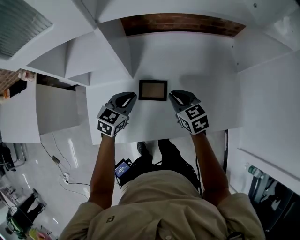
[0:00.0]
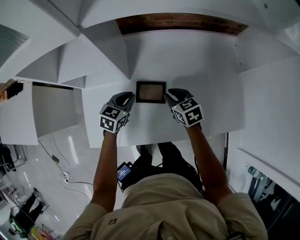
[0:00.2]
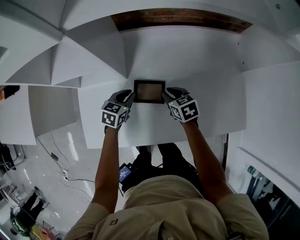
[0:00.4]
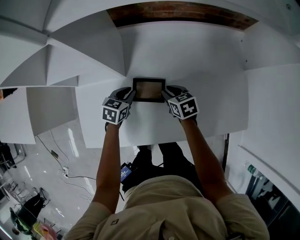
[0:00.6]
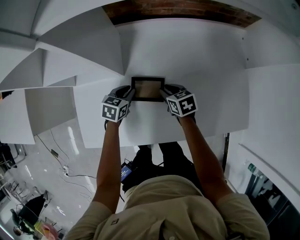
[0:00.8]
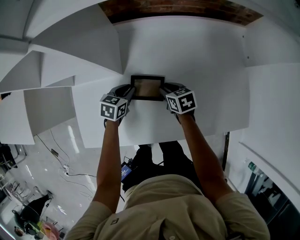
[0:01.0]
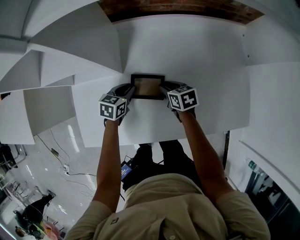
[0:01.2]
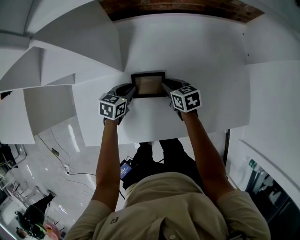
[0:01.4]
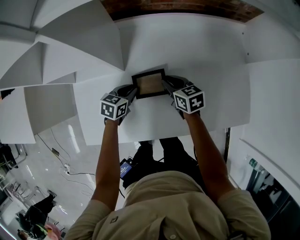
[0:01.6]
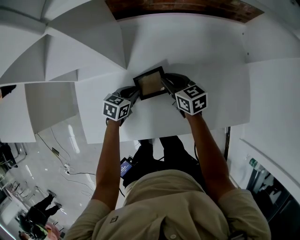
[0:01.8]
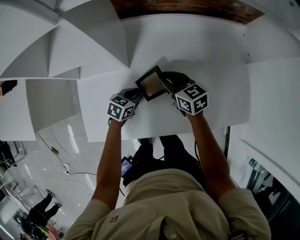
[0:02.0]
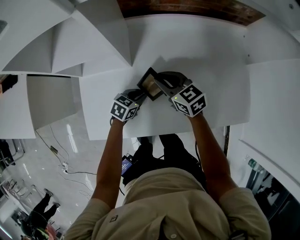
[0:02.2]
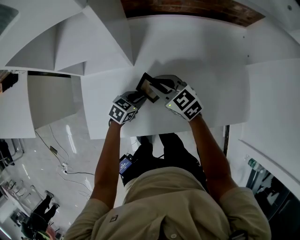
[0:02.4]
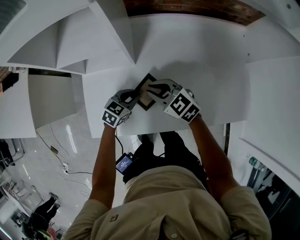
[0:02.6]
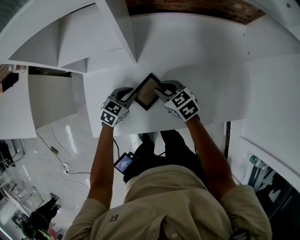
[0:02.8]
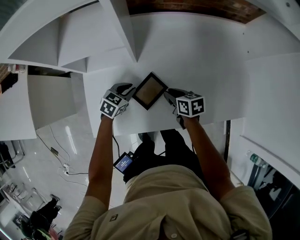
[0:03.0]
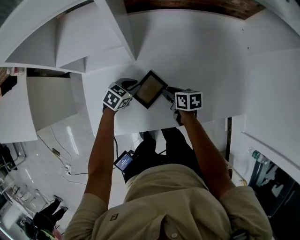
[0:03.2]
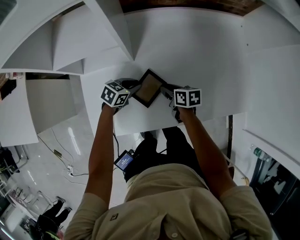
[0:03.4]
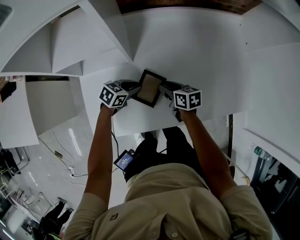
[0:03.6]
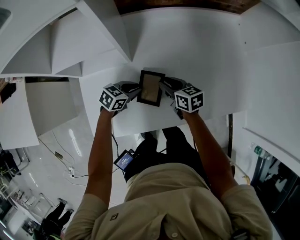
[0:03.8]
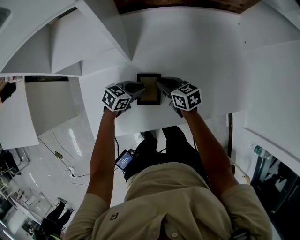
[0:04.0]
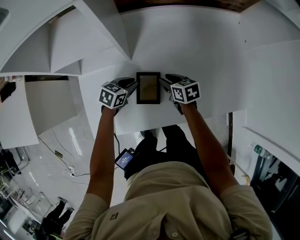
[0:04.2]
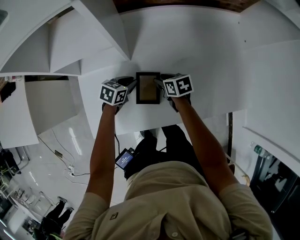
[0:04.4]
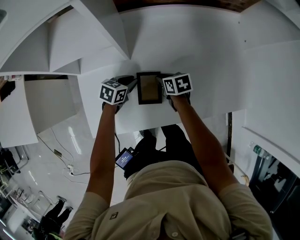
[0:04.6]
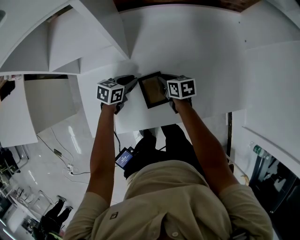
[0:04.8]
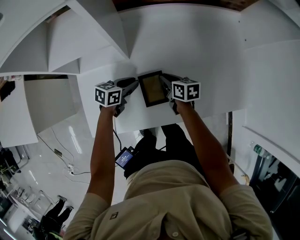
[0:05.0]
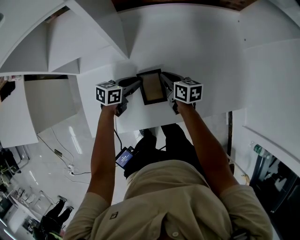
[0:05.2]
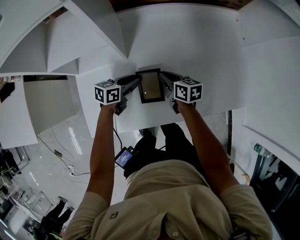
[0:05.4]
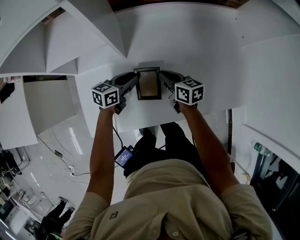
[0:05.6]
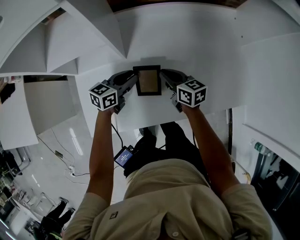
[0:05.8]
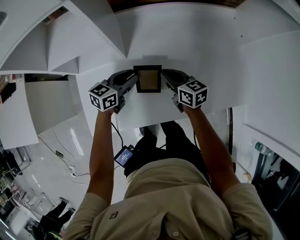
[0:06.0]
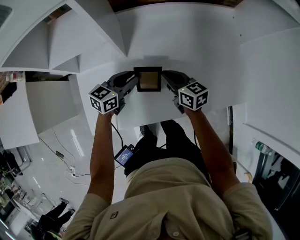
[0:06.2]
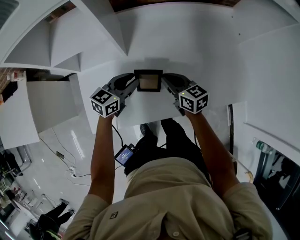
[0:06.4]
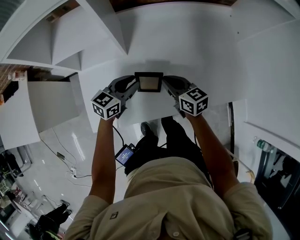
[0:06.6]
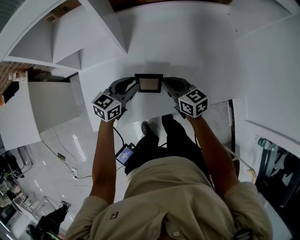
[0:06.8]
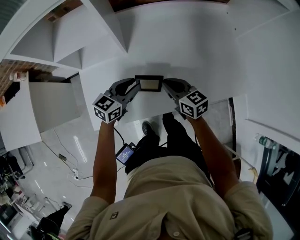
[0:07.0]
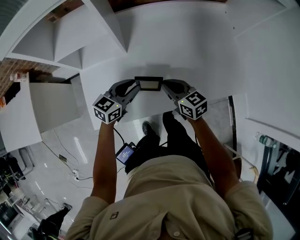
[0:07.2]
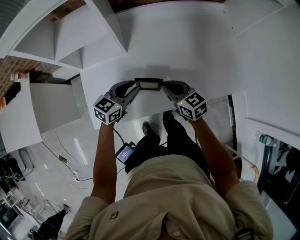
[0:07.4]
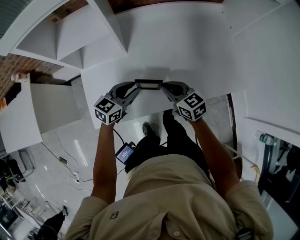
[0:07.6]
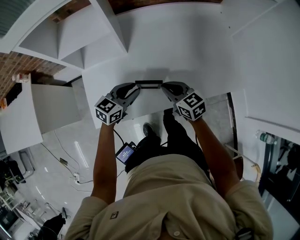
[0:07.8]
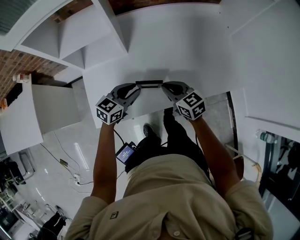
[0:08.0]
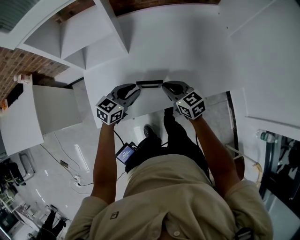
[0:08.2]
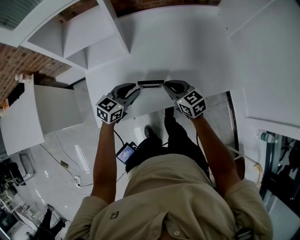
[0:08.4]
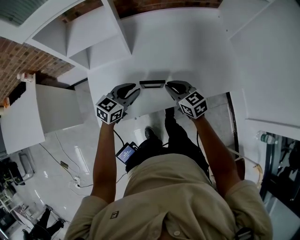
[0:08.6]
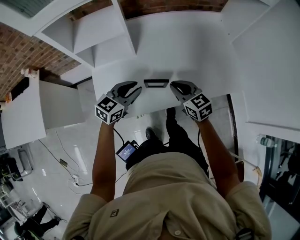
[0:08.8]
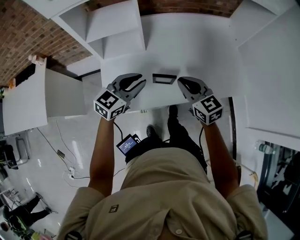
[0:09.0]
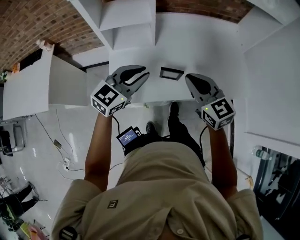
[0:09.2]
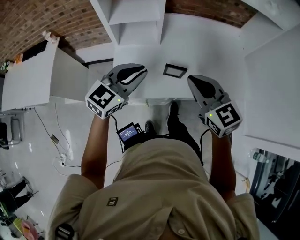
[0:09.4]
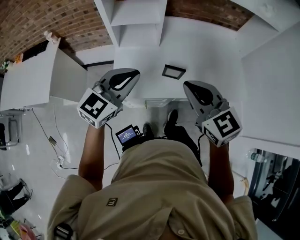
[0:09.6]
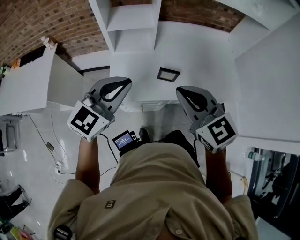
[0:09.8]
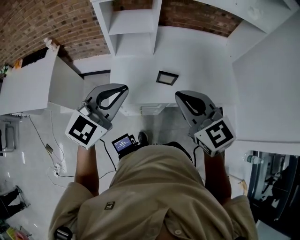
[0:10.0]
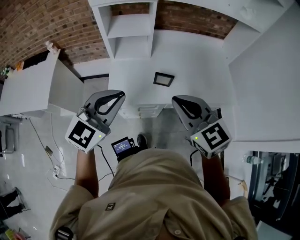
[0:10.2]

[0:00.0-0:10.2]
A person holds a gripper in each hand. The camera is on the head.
0:00.0 to 0:01.4: Both grippers move downward, roughly 15 cm. The left gripper turns by roughly 20 degrees; the right gripper rotates some 20 degrees.
0:01.4 to 0:03.0: The right gripper heads backward, covering approximately 10 cm. The left gripper is displaced to the left and backward by about 10 cm.
0:03.0 to 0:04.4: The right gripper shifts by some 5 cm.
0:04.4 to 0:05.8: The two grippers go roughly 10 cm upward. The right gripper swivels approximately 30 degrees, and closes up, while the left gripper turns by roughly 30 degrees.
0:05.8 to 0:07.2: Both grippers travel together backward, approximately 10 cm.
0:07.2 to 0:08.8: Both grippers move upward and backward, some 10 cm.
0:08.8 to 0:10.2: Both grippers move upward and backward, roughly 35 cm. The left gripper turns by approximately 30 degrees. The right gripper changes its angle by about 20 degrees.

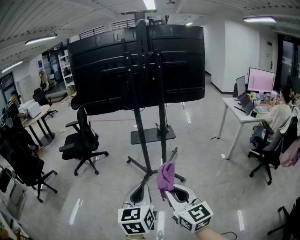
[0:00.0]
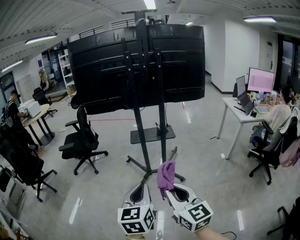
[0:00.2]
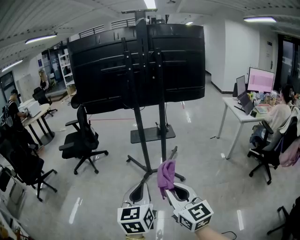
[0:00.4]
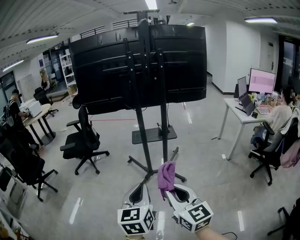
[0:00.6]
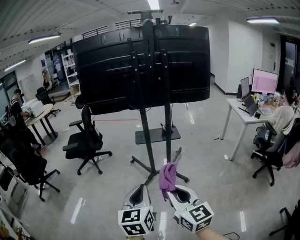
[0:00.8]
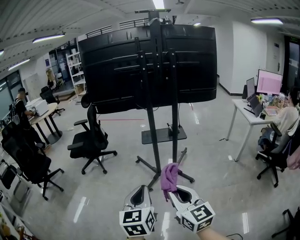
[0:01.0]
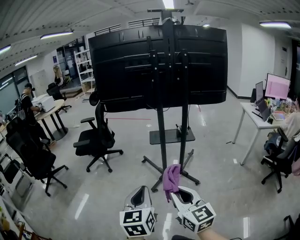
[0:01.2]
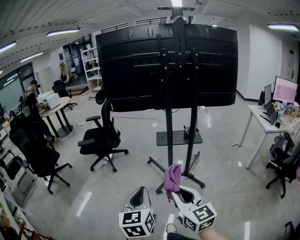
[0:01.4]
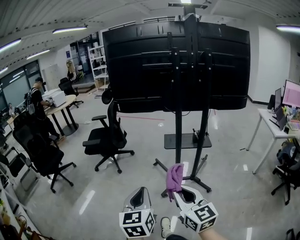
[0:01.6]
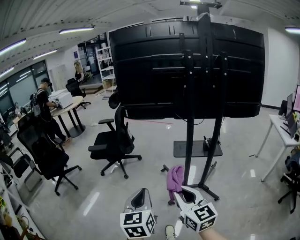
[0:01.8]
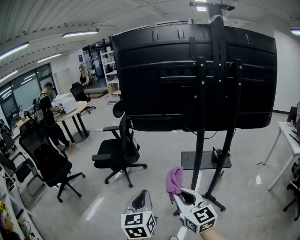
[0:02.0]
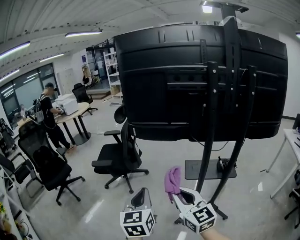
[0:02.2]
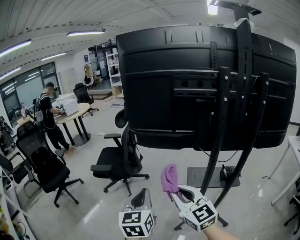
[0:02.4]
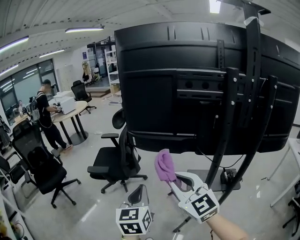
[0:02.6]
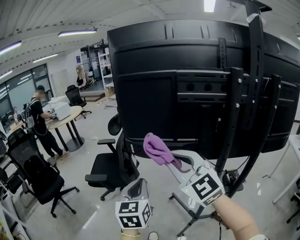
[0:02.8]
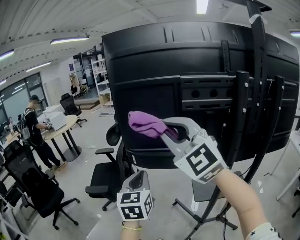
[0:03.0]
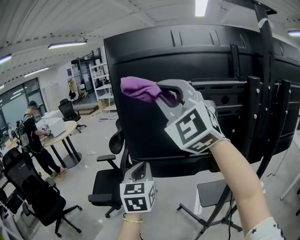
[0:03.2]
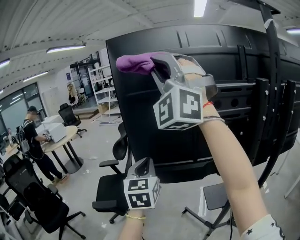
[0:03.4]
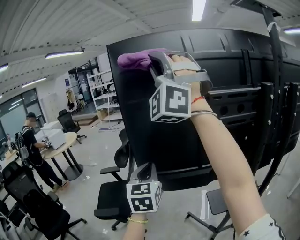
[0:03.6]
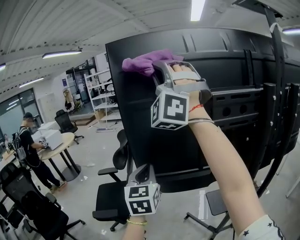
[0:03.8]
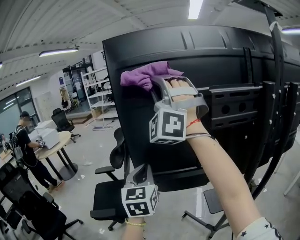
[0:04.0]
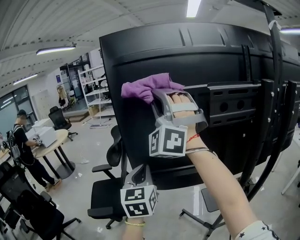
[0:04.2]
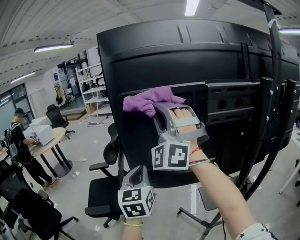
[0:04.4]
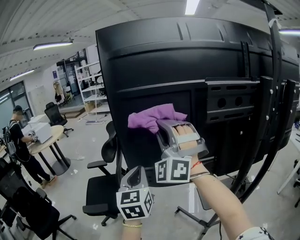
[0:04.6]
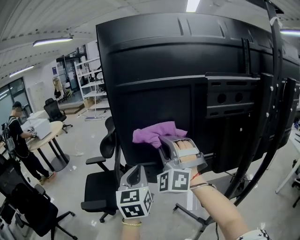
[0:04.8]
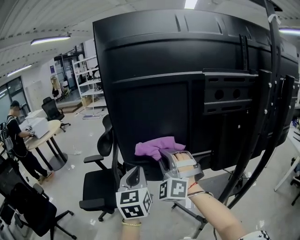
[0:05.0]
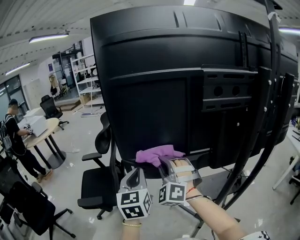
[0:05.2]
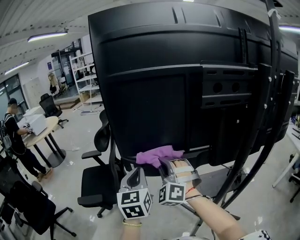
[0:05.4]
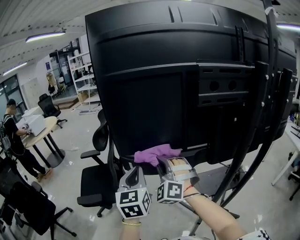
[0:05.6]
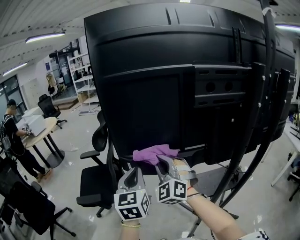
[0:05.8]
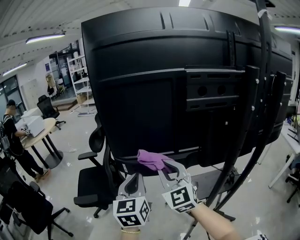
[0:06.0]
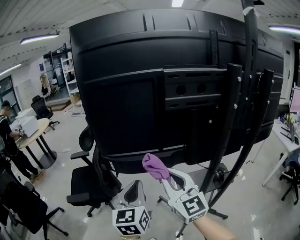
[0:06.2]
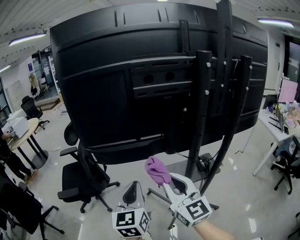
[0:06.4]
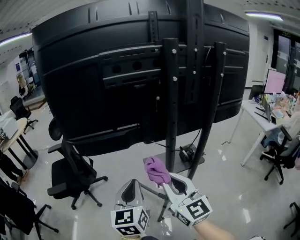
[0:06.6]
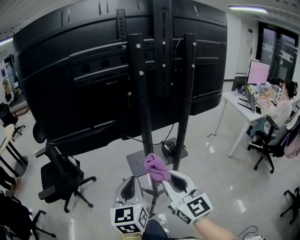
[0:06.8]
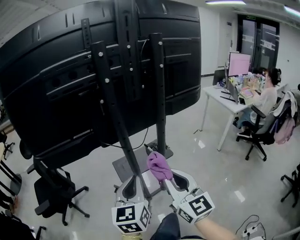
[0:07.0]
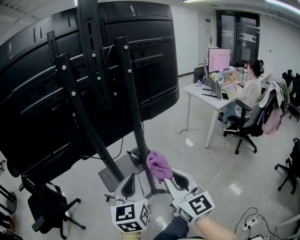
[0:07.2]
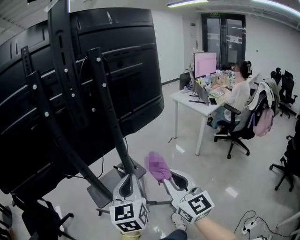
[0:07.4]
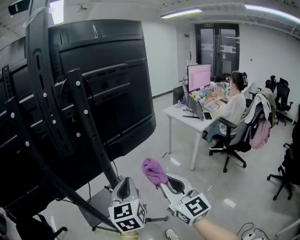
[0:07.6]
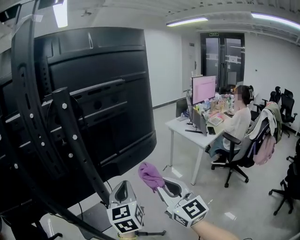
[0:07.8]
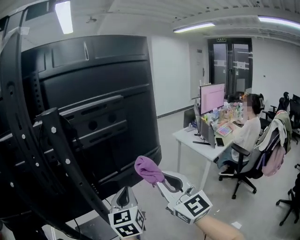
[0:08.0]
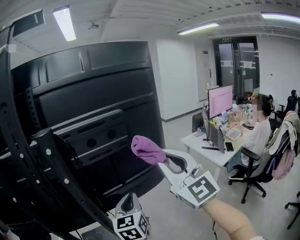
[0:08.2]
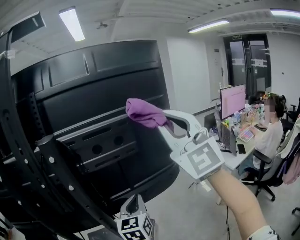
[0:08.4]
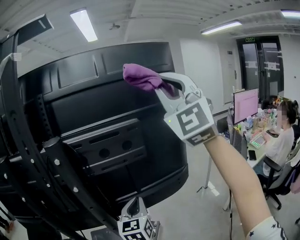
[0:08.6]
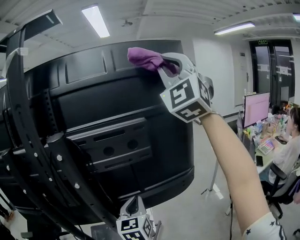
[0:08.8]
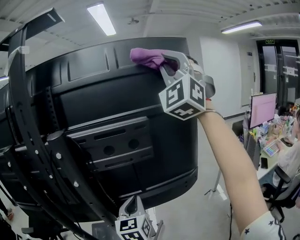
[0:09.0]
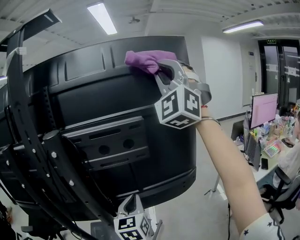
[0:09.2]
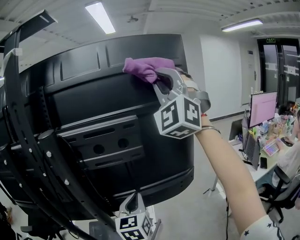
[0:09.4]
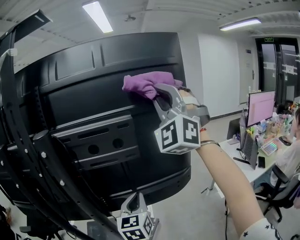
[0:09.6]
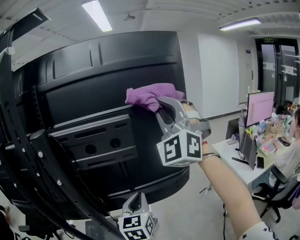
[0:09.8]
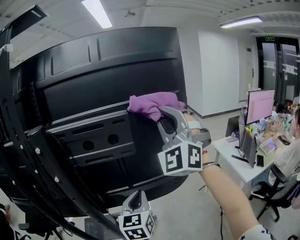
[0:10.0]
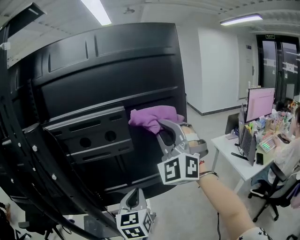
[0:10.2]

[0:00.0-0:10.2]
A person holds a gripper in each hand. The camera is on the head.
0:00.0 to 0:01.4: The two grippers go approximately 15 cm to the left and forward.
0:01.4 to 0:03.0: The two grippers travel together, forward, some 60 cm. The right gripper shifts some 30 cm upward, and rolls counterclockwise, seen from behind, by some 50 degrees.
0:03.0 to 0:04.4: Both grippers move forward, approximately 15 cm. The right gripper goes upward and returns, about 25 cm each way, and rotates roughly 50 degrees.
0:04.4 to 0:05.8: The right gripper travels downward by about 25 cm, and changes its angle by about 40 degrees. Meanwhile the left gripper shifts roughly 5 cm downward.
0:05.8 to 0:07.2: Both grippers are carried roughly 60 cm. The left gripper swivels some 30 degrees. The right gripper twists roughly 50 degrees clockwise, seen from behind.
0:07.2 to 0:08.8: Both grippers are carried forward and to the right, about 50 cm. The right gripper is displaced upward by about 50 cm, and twists approximately 60 degrees counterclockwise, seen from behind.
0:08.8 to 0:10.2: The right gripper is displaced downward by roughly 25 cm. Meanwhile the left gripper moves to the right, about 5 cm.

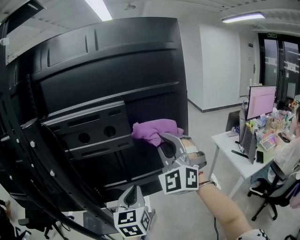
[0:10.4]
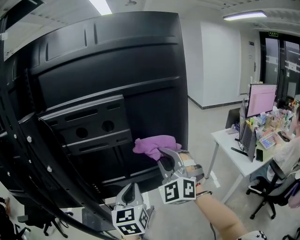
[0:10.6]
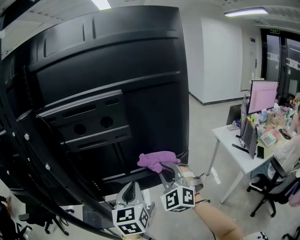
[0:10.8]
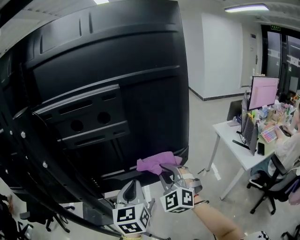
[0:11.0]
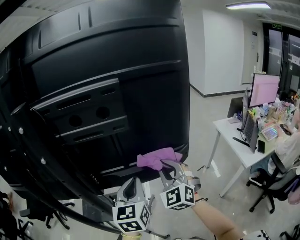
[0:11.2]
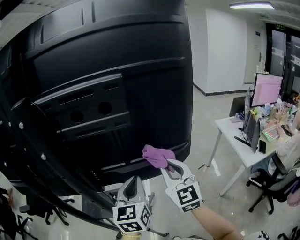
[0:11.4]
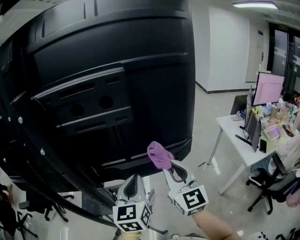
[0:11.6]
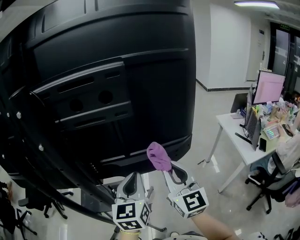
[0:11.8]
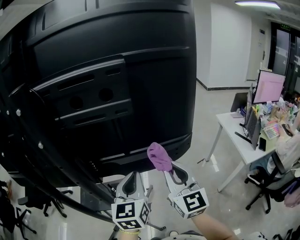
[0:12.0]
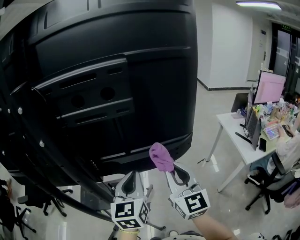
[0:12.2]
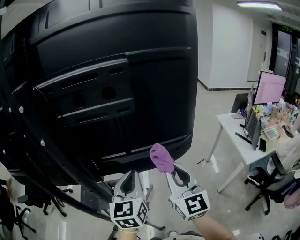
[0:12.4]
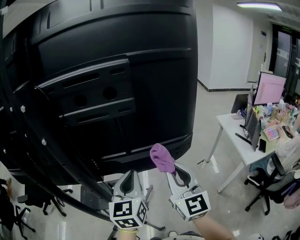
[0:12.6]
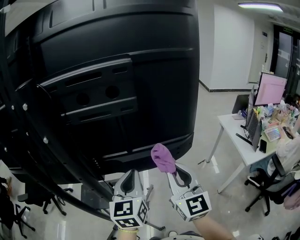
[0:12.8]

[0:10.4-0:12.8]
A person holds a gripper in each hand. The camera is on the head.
0:10.4 to 0:11.6: The right gripper shifts some 15 cm downward and backward, and rolls clockwise, seen from behind, by approximately 60 degrees.
0:11.6 to 0:12.8: The grippers move only a little.
